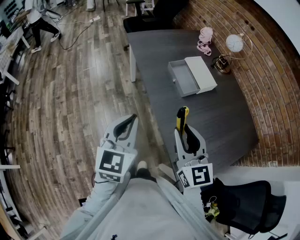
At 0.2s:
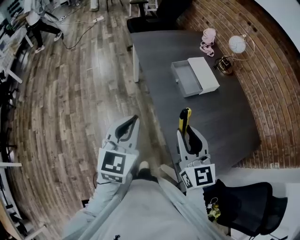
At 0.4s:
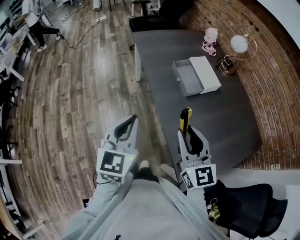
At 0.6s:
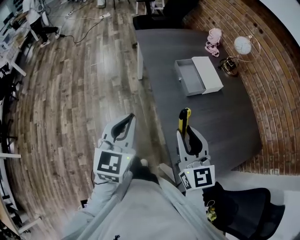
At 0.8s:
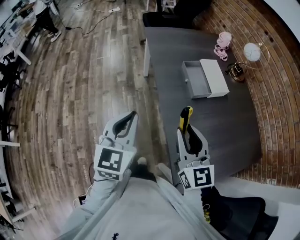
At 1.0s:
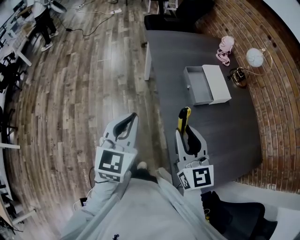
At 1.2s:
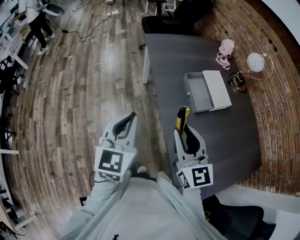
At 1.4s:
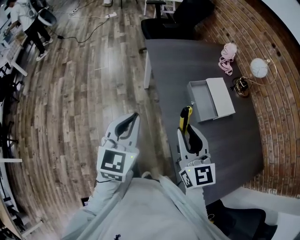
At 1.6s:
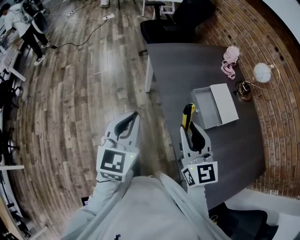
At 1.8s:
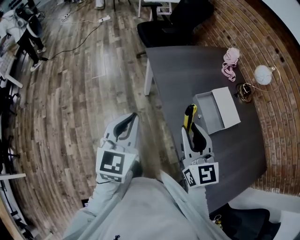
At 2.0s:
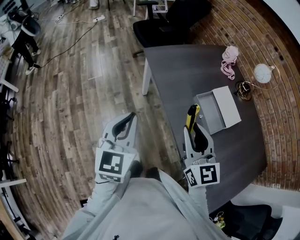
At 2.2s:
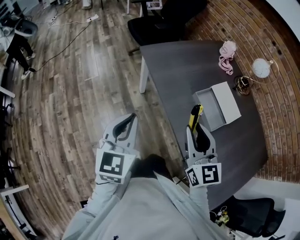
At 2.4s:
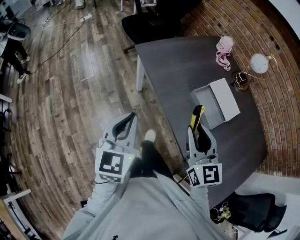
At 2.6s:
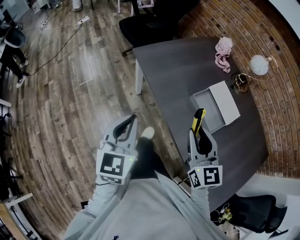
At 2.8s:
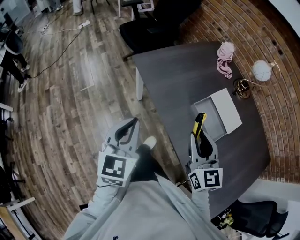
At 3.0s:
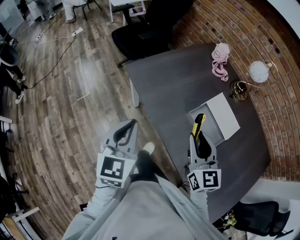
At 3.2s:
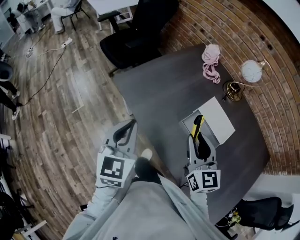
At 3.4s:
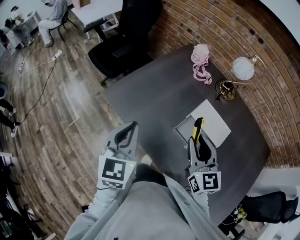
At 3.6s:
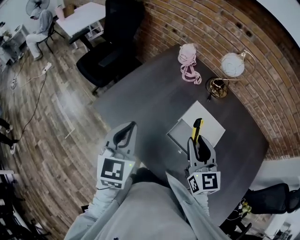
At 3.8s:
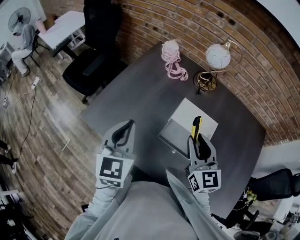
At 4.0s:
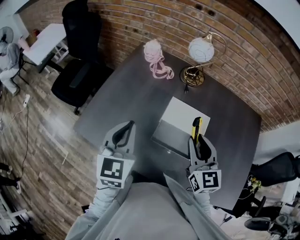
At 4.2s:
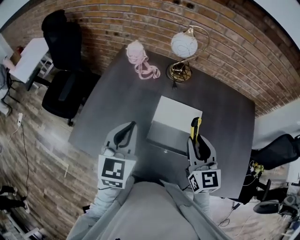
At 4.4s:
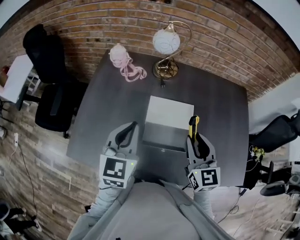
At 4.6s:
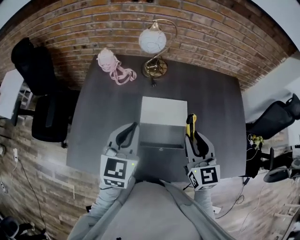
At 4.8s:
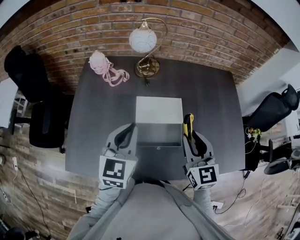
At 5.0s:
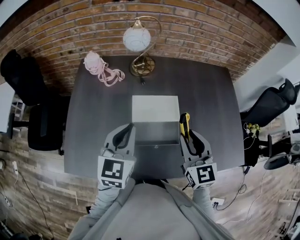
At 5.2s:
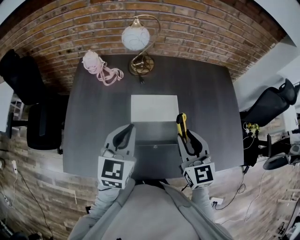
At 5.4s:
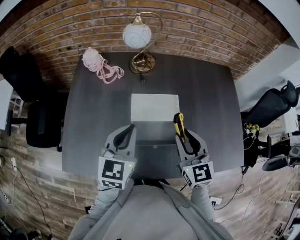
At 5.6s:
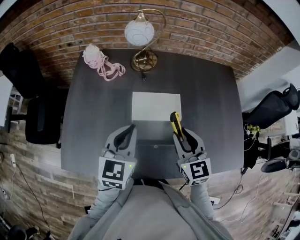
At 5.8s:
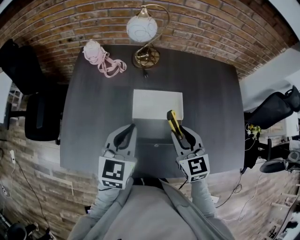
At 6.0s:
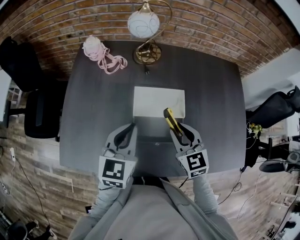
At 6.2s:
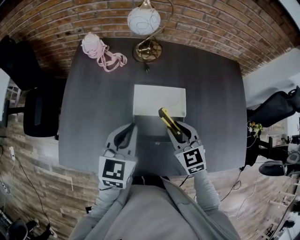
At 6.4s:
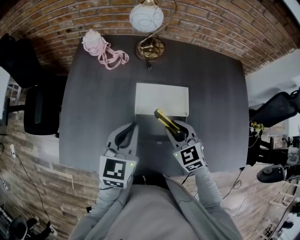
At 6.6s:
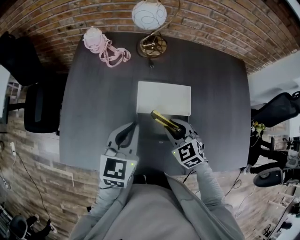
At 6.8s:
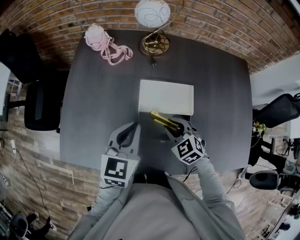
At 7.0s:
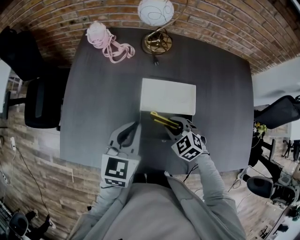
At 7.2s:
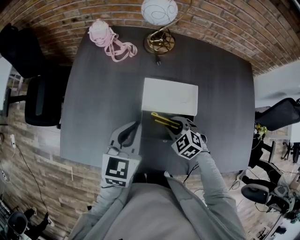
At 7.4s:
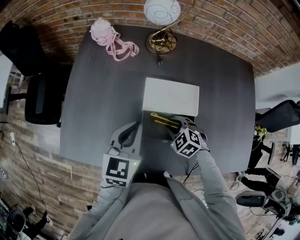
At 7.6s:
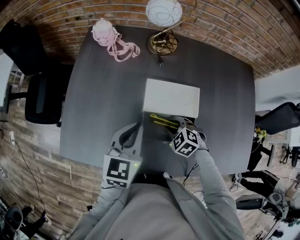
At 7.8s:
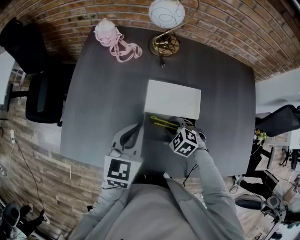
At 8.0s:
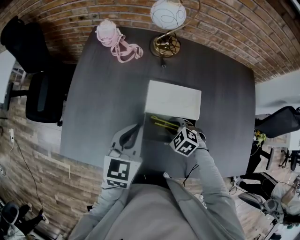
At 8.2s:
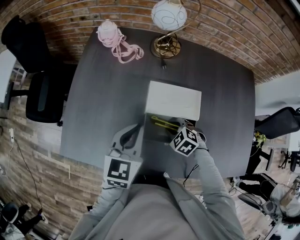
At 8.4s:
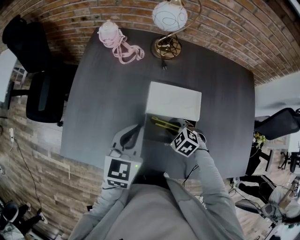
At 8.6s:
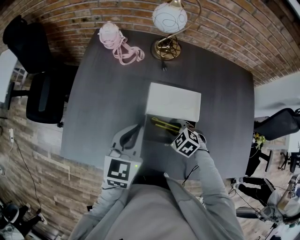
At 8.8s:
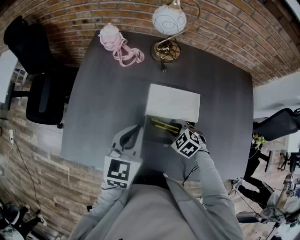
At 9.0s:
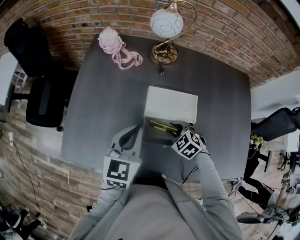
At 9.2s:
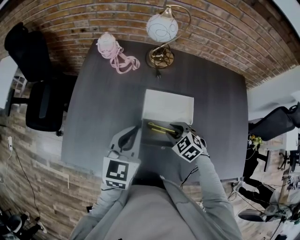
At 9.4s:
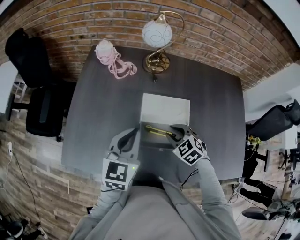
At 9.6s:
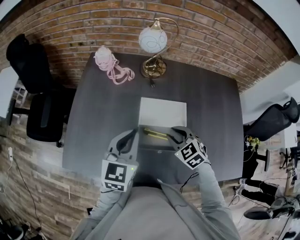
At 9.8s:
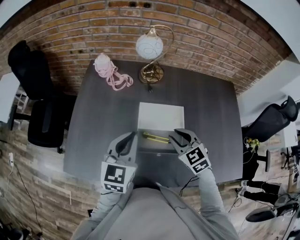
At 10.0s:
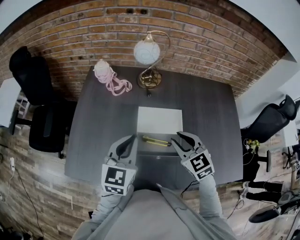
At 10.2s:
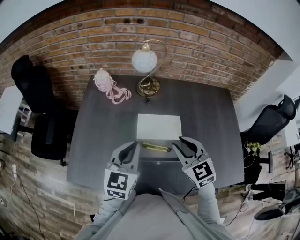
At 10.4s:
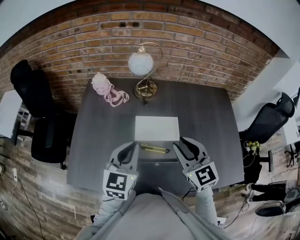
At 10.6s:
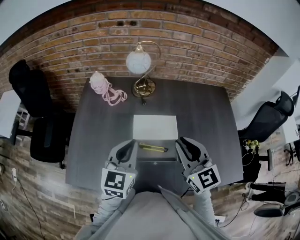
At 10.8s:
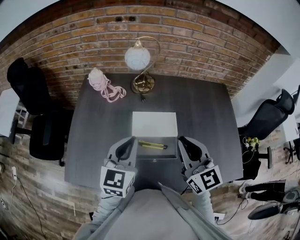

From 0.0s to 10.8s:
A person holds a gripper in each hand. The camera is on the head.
From 0.0s to 1.6s: The left gripper heads forward and to the left, covering about 20 cm. Meanwhile the right gripper shifts some 20 cm forward.
From 1.6s to 3.0s: The two grippers go approximately 15 cm forward. The right gripper changes its angle by about 20 degrees.
From 3.0s to 4.6s: The right gripper moves approximately 20 cm, and rotates some 50 degrees. Meanwhile the left gripper shifts by roughly 35 cm, and changes its angle by some 60 degrees.
From 4.6s to 6.2s: The right gripper heads downward, covering approximately 10 cm, and rotates some 20 degrees. Meanwhile the left gripper goes some 5 cm downward.
From 6.2s to 7.8s: The right gripper shifts some 15 cm downward, and tilts its fingers some 30 degrees downward.
From 7.8s to 9.2s: The right gripper goes about 5 cm upward.
From 9.2s to 10.8s: The right gripper moves upward, about 25 cm, tilts its fingers roughly 50 degrees upward, and closes. The left gripper moves upward, some 5 cm.

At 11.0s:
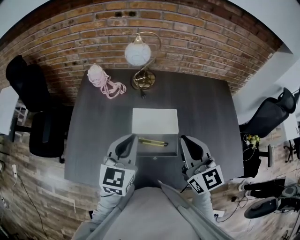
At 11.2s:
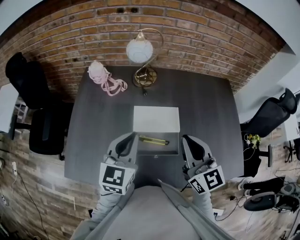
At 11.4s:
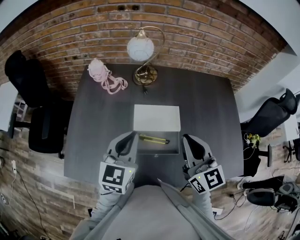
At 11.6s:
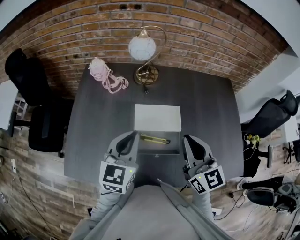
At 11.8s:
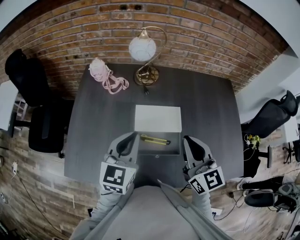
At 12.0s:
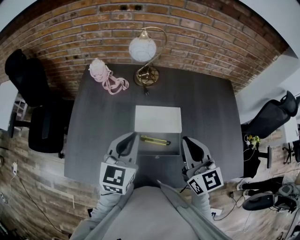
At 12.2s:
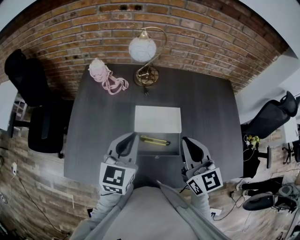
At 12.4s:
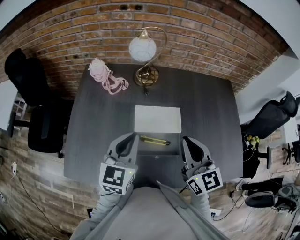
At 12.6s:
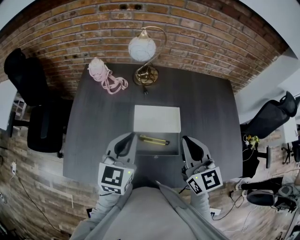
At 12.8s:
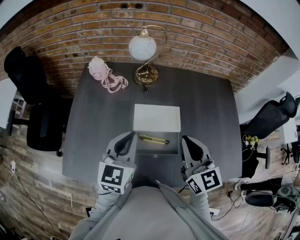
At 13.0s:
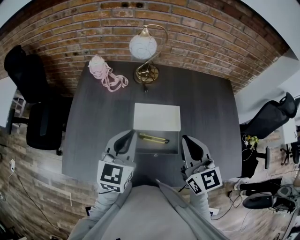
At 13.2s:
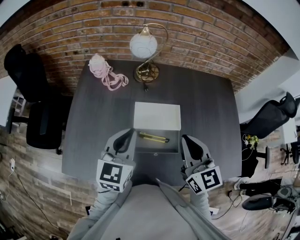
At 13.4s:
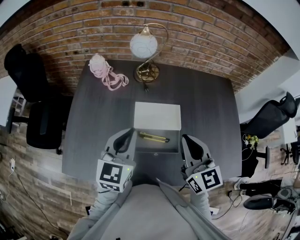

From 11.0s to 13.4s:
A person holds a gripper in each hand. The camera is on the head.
From 11.0s to 12.2s: The grippers make only small movements.
From 12.2s to 13.4s: Both grippers stay about where they are.

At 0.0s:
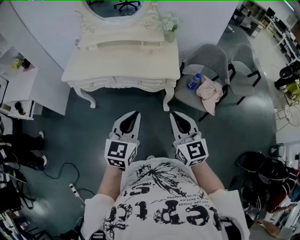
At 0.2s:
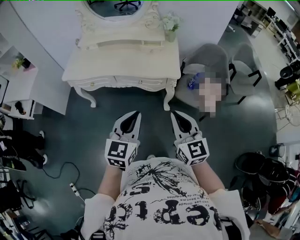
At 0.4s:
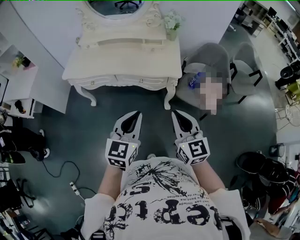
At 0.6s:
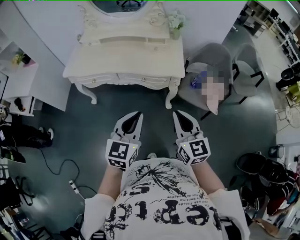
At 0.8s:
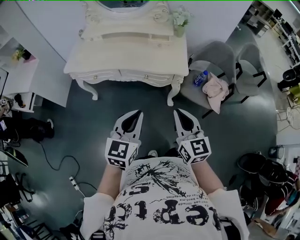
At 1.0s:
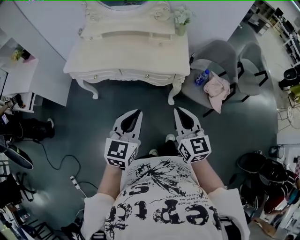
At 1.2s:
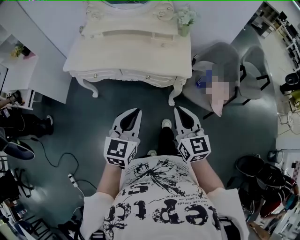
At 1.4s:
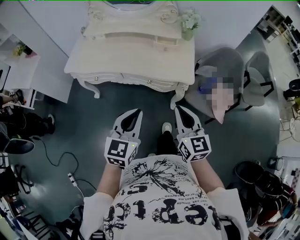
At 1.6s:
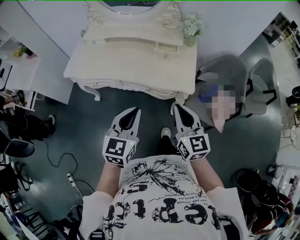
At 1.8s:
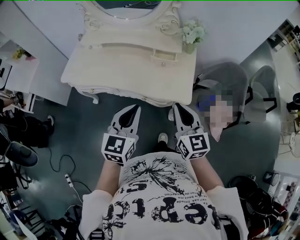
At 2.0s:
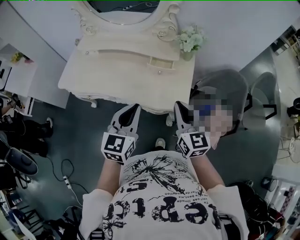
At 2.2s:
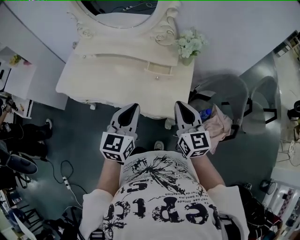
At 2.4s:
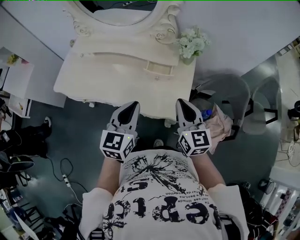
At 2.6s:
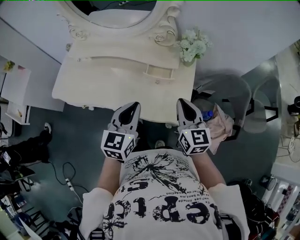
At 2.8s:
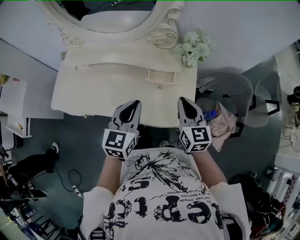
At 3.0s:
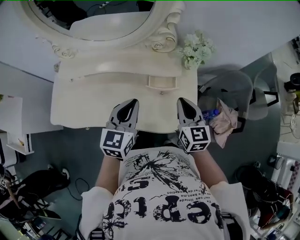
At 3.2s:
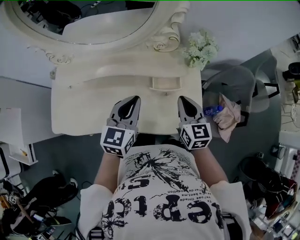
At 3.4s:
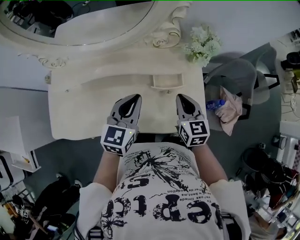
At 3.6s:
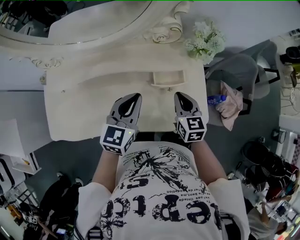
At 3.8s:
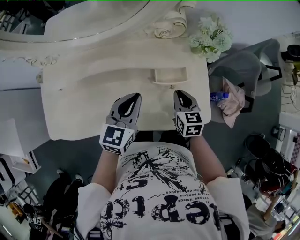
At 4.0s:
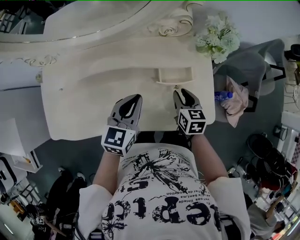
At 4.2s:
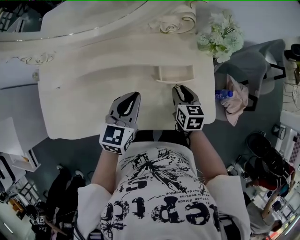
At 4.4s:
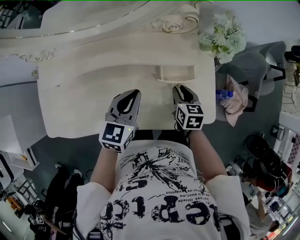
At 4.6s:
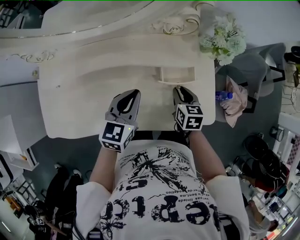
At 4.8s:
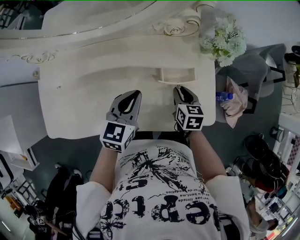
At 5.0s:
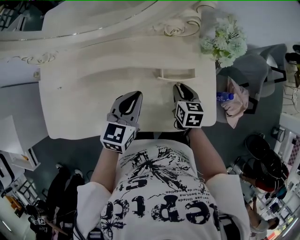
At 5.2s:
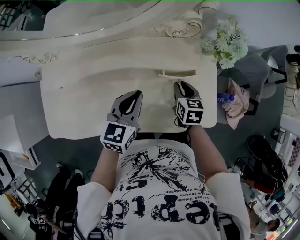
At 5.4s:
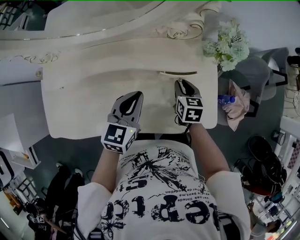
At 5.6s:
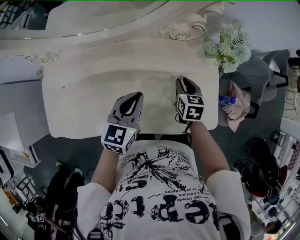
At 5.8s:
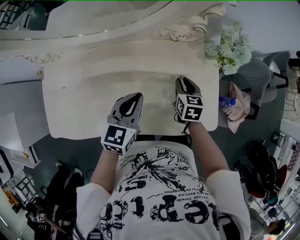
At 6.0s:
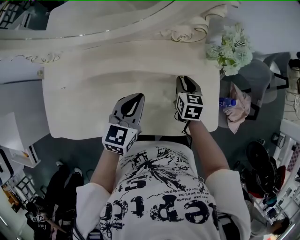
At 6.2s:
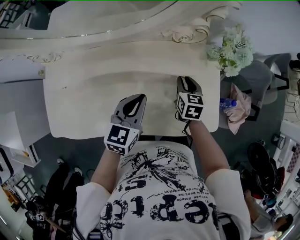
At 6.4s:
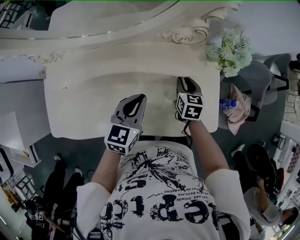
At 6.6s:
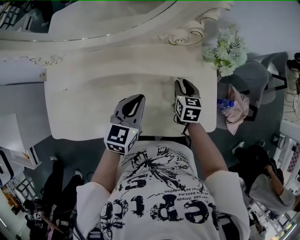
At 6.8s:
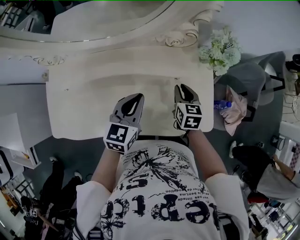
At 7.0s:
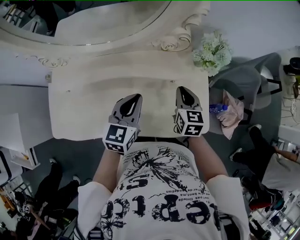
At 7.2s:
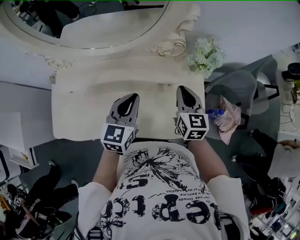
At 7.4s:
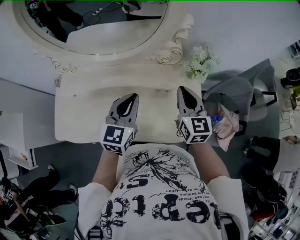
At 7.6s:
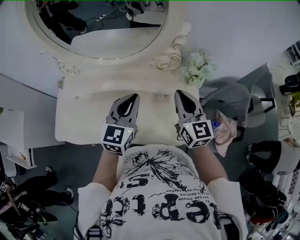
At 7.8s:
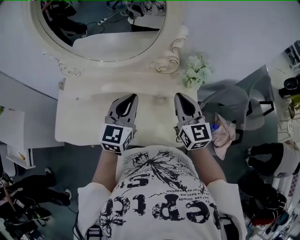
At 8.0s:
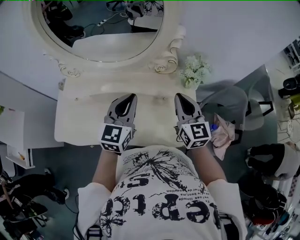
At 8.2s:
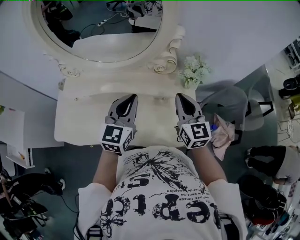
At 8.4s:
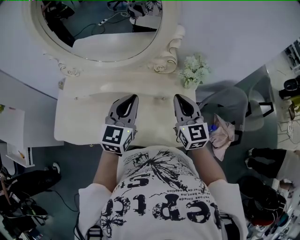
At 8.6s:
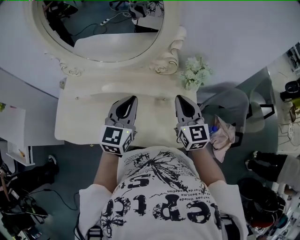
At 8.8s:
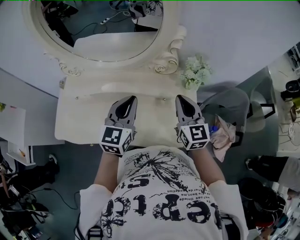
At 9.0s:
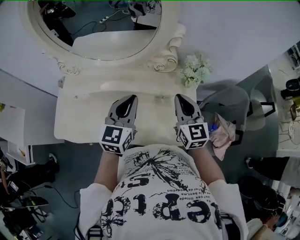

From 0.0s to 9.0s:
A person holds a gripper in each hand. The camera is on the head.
From 0.0s to 1.6s: Both grippers move forward, some 15 cm.
From 1.6s to 3.0s: Both grippers move forward, some 35 cm.
From 3.0s to 4.4s: The right gripper moves downward, roughly 20 cm, changes its angle by about 30 degrees, and opens; the left gripper heads downward, to the left and forward, covering about 15 cm.
From 4.4s to 6.0s: The right gripper shifts approximately 10 cm forward.
From 6.0s to 7.6s: The right gripper shifts about 25 cm upward, points its fingers about 40 degrees further upward, and closes. Meanwhile the left gripper is displaced upward by some 15 cm, and swivels approximately 20 degrees.
From 7.6s to 9.0s: There are only small adjustments of the grippers.

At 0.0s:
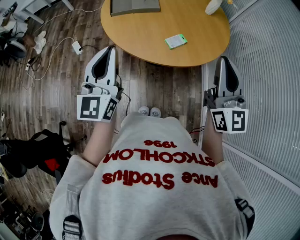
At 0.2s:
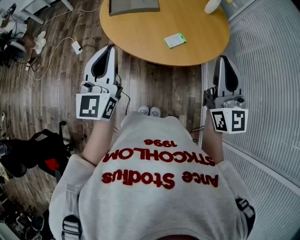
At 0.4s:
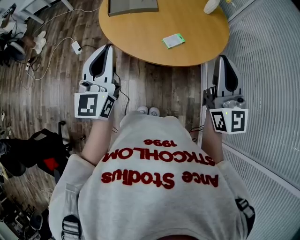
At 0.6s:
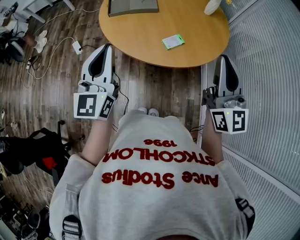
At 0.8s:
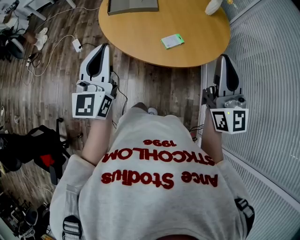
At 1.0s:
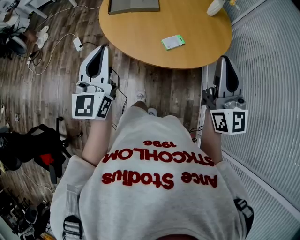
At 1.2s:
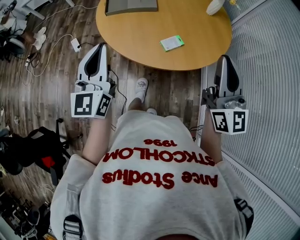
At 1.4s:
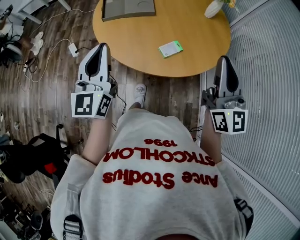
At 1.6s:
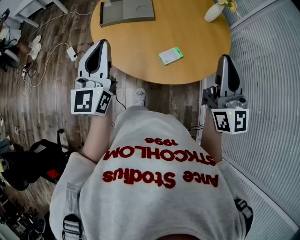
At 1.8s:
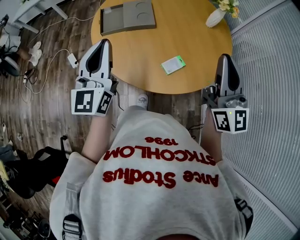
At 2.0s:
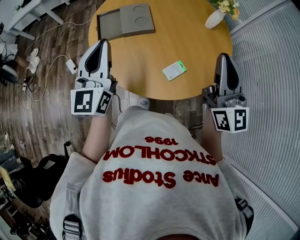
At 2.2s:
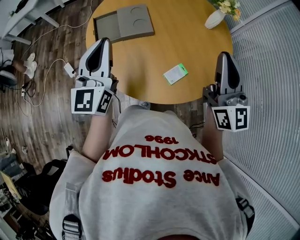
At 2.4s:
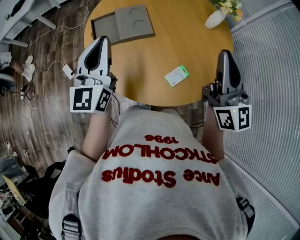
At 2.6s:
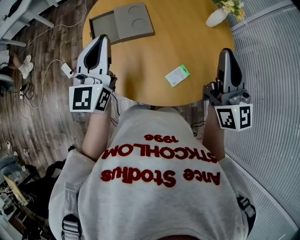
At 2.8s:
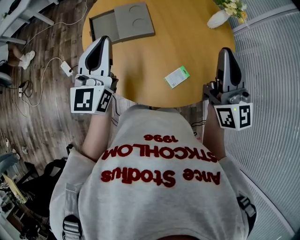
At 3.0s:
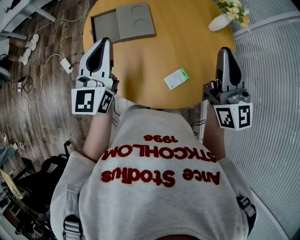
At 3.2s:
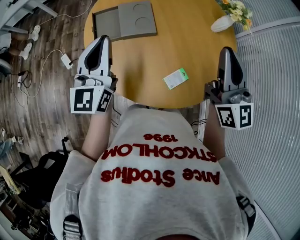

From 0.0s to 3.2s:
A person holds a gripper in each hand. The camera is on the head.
From 0.0s to 1.6s: The grippers both shift forward by approximately 15 cm.
From 1.6s to 3.2s: Both grippers move forward, about 20 cm.
